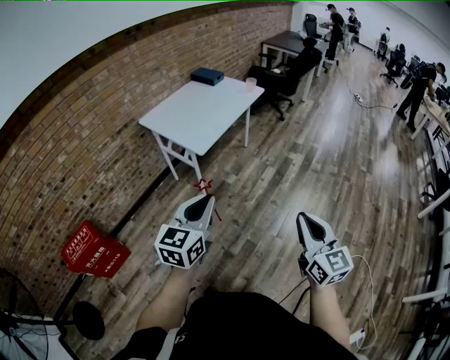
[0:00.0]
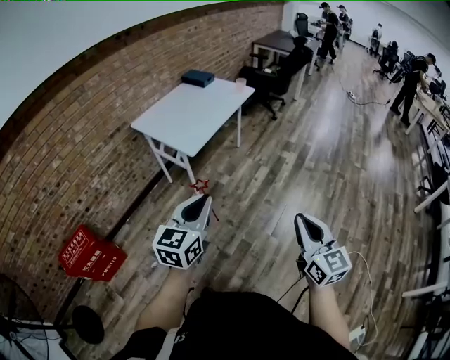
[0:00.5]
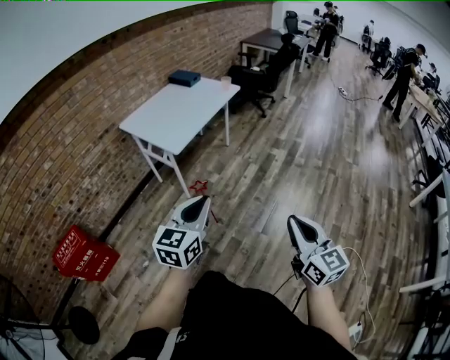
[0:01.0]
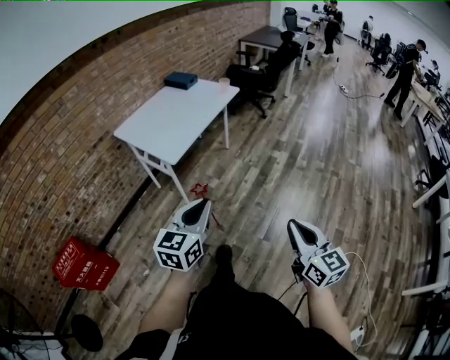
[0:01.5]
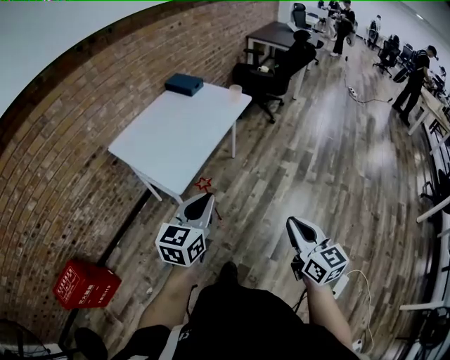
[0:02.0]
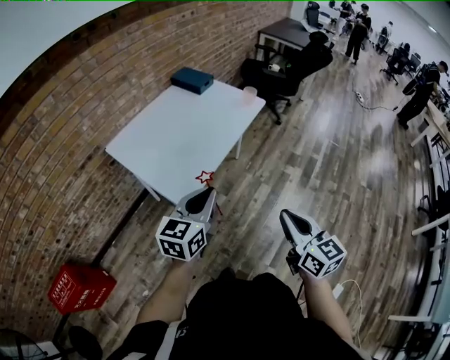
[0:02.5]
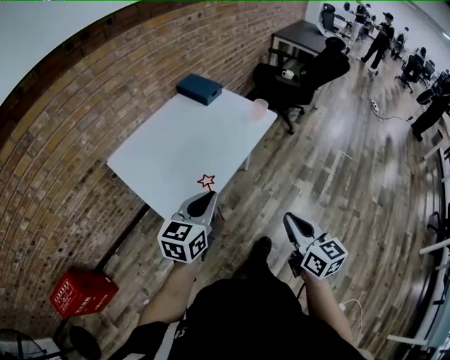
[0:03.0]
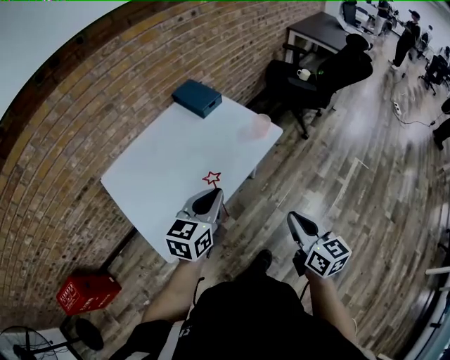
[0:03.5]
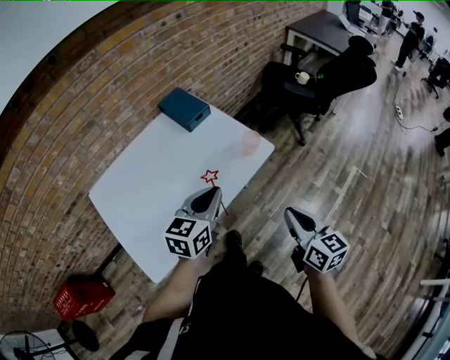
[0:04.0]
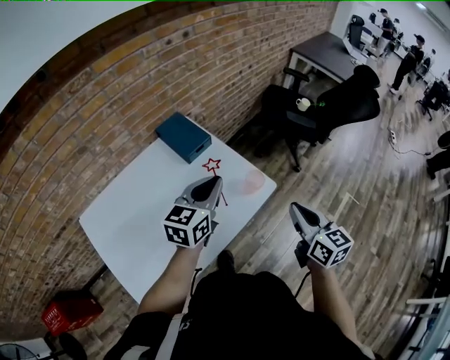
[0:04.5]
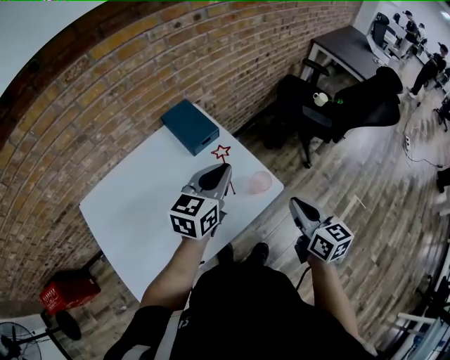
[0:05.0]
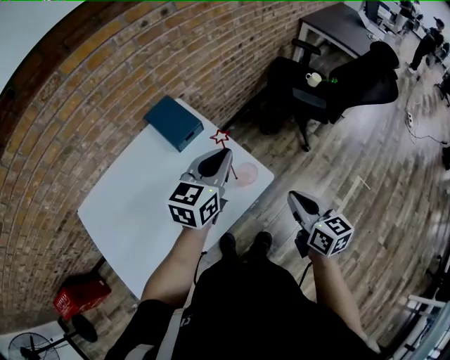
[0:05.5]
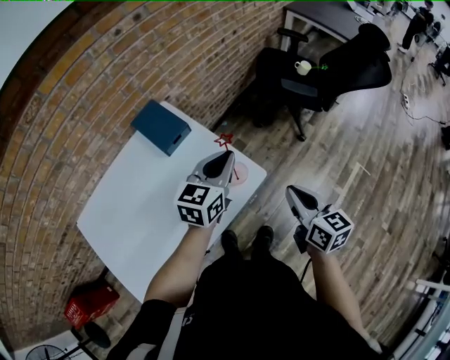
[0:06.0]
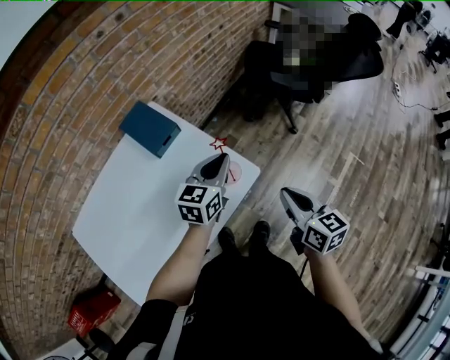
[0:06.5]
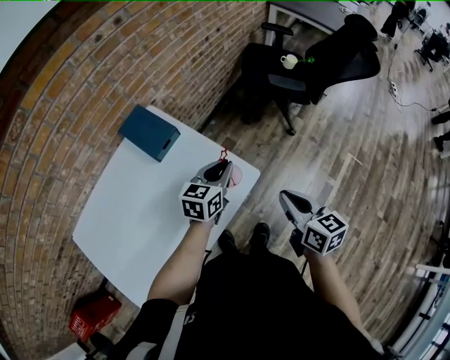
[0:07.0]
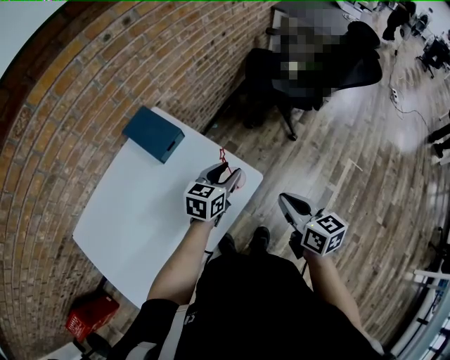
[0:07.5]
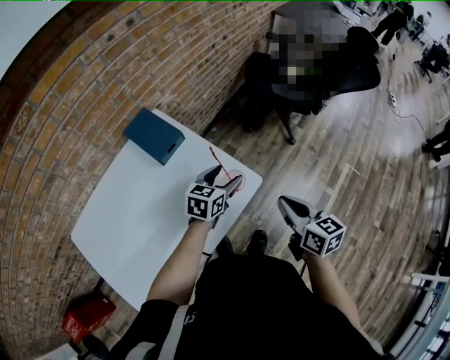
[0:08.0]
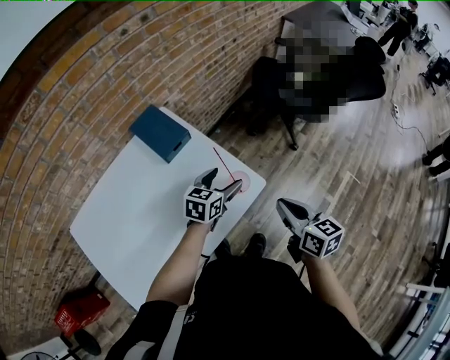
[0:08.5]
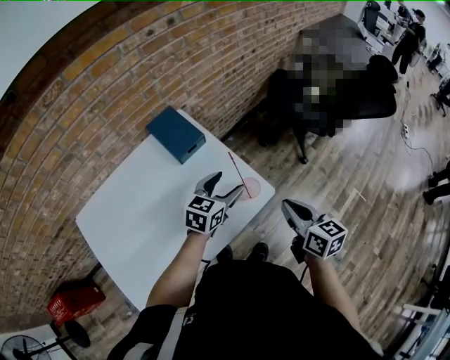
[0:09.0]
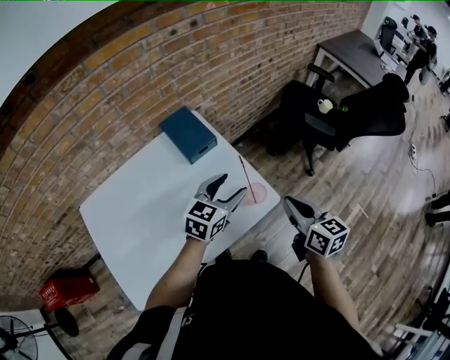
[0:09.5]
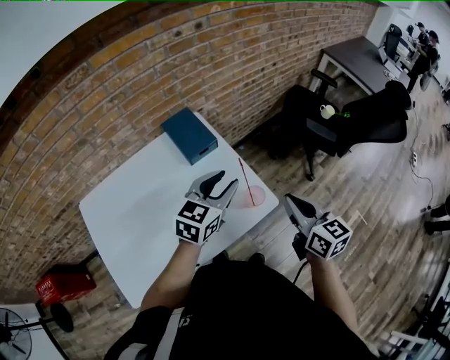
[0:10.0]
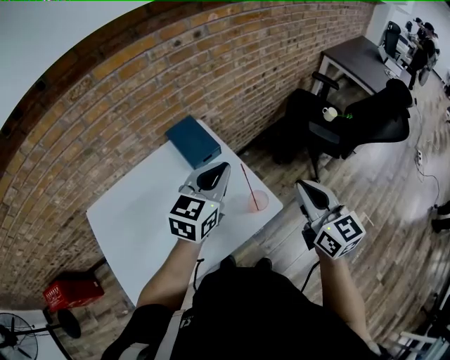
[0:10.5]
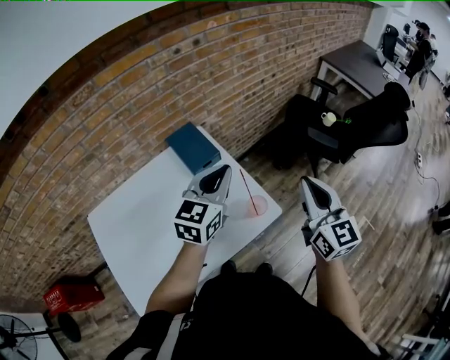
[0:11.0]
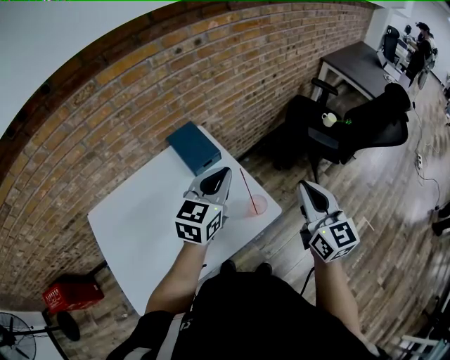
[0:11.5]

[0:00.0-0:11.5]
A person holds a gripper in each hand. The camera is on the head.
0:00.0 to 0:02.0: The grippers both shift forward by about 25 cm.
0:02.0 to 0:04.0: The pair of grippers is taken forward, approximately 60 cm.
0:04.0 to 0:06.0: The left gripper is displaced forward and to the right by approximately 30 cm; the right gripper goes roughly 25 cm forward.
0:06.0 to 0:07.5: The left gripper goes approximately 10 cm downward, and opens up.
0:07.5 to 0:09.5: The right gripper moves to the left, approximately 5 cm. The left gripper travels to the left and upward by some 10 cm.
0:09.5 to 0:11.5: The grippers both shift upward by roughly 10 cm. The right gripper changes its angle by roughly 30 degrees, while the left gripper closes its fingers.

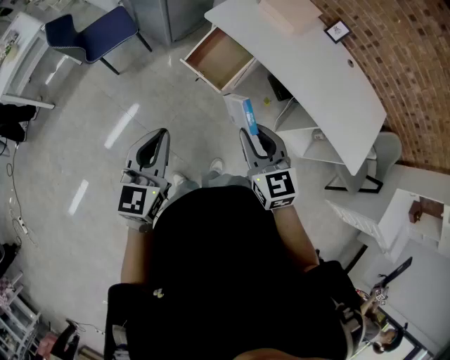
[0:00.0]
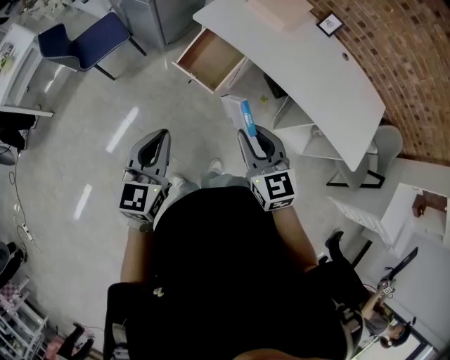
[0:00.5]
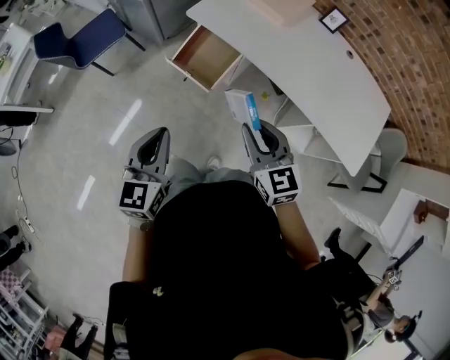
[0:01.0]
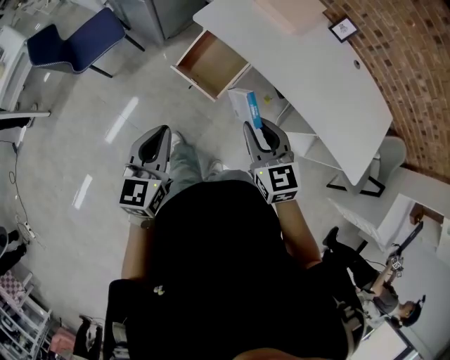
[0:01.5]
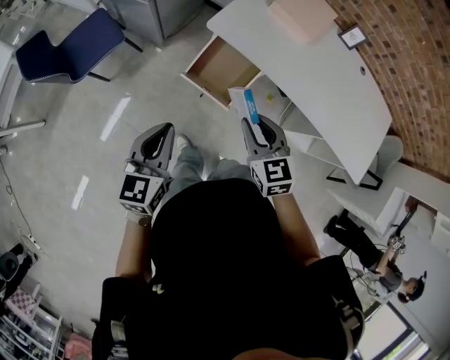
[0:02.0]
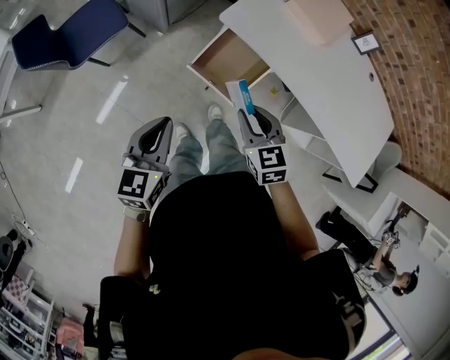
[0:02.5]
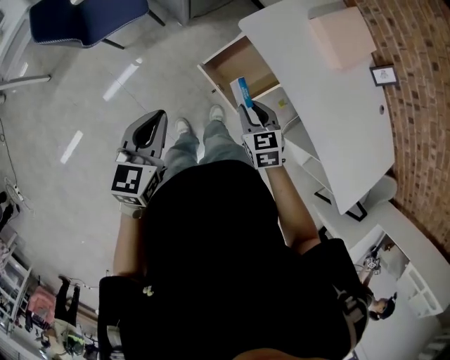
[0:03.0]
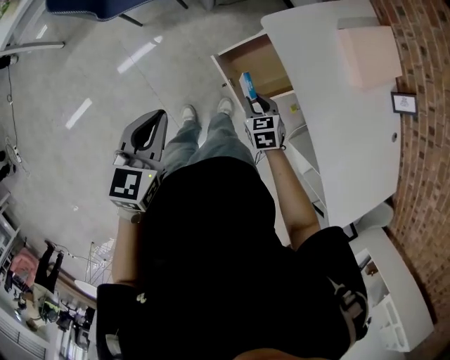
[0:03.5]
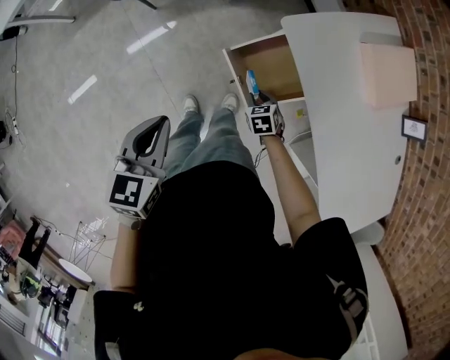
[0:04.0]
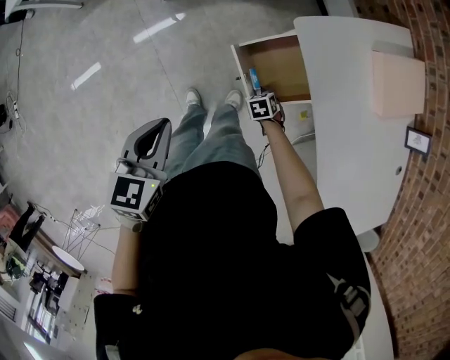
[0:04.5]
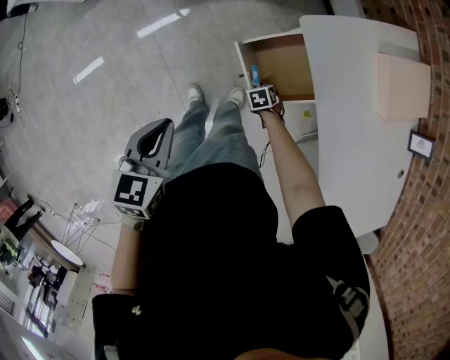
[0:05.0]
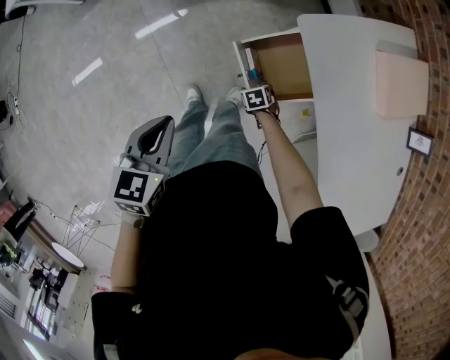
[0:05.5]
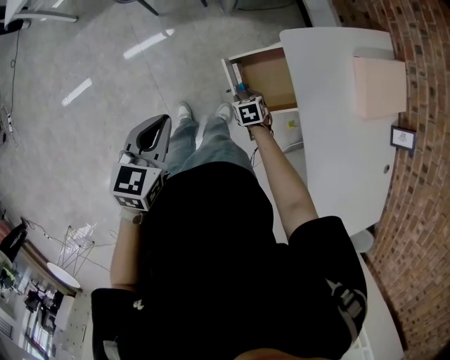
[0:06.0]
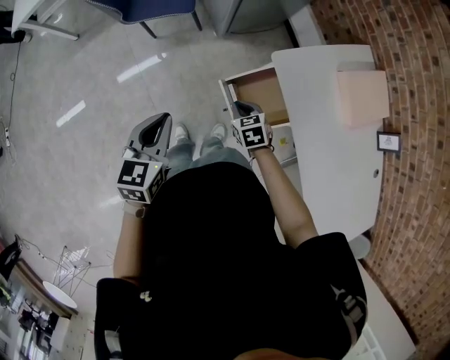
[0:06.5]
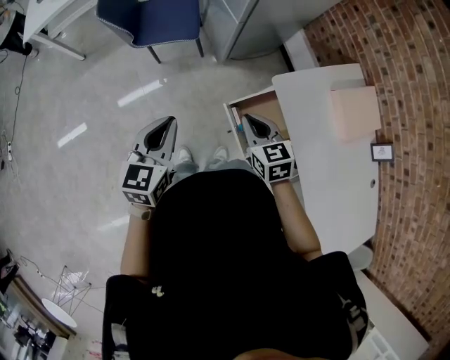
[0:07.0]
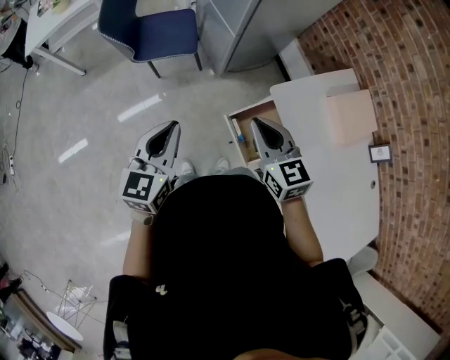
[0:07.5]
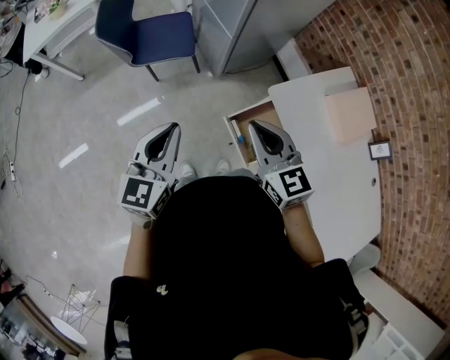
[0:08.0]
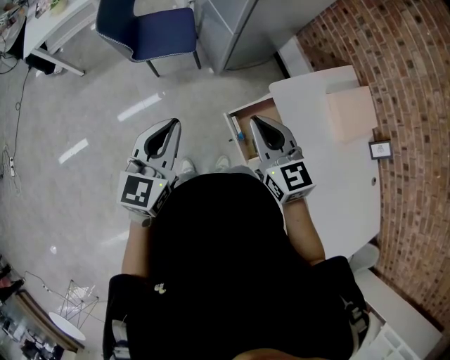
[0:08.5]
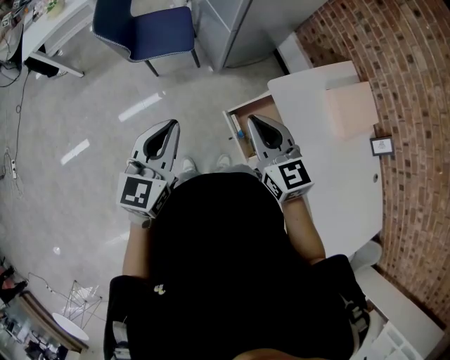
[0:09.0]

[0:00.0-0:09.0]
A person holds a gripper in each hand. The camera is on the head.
0:00.0 to 0:02.0: Both grippers travel together forward, some 20 cm.
0:02.0 to 0:04.5: The left gripper travels downward by approximately 5 cm, and changes its angle by about 40 degrees. Meanwhile the right gripper goes approximately 40 cm downward, and tips its fingers downward by roughly 40 degrees.
0:04.5 to 0:07.0: The right gripper travels upward by about 35 cm, tips its fingers upward by about 40 degrees, and opens, then closes once more, while the left gripper moves some 15 cm.
0:07.0 to 0:09.0: The right gripper heads upward, covering some 15 cm, while the left gripper heads upward, covering approximately 5 cm.

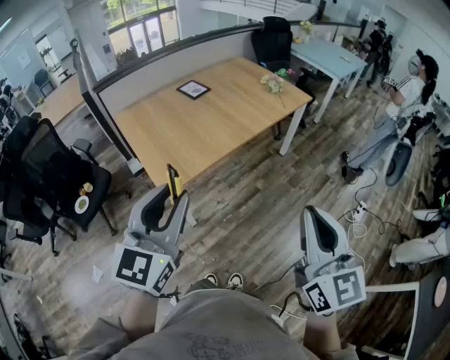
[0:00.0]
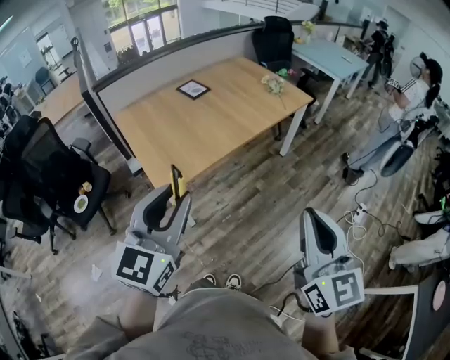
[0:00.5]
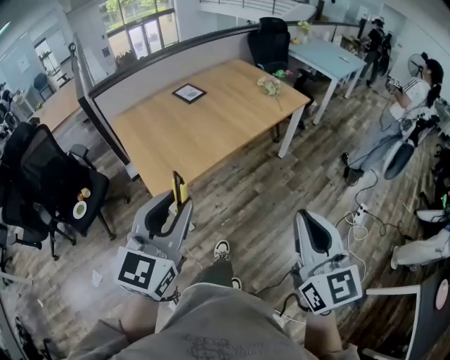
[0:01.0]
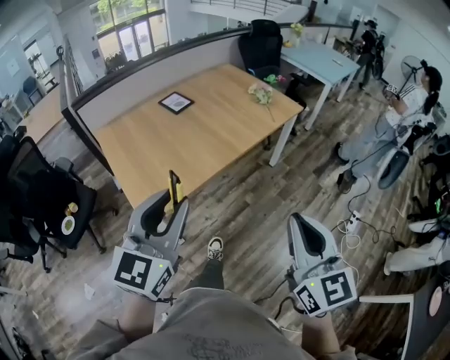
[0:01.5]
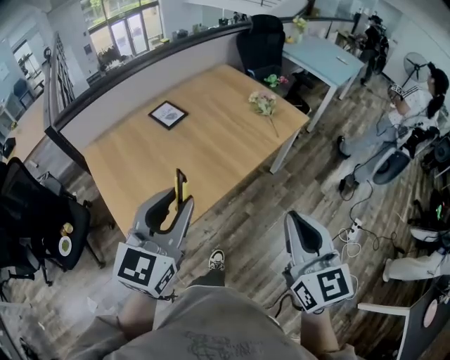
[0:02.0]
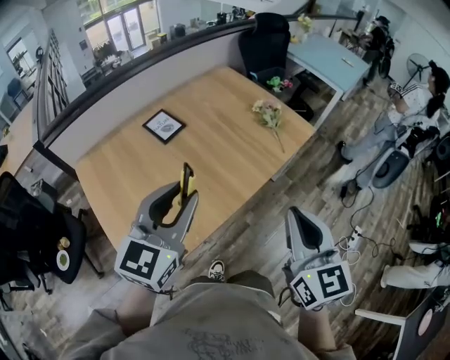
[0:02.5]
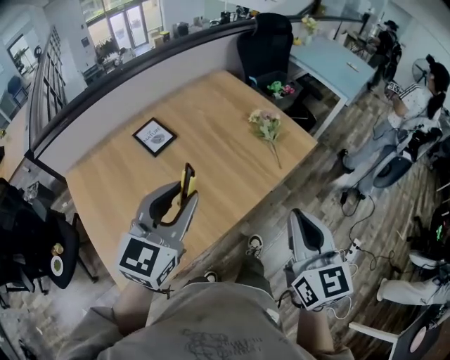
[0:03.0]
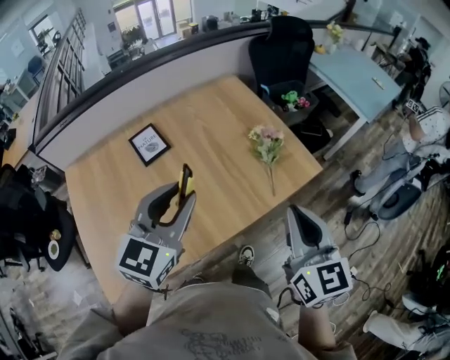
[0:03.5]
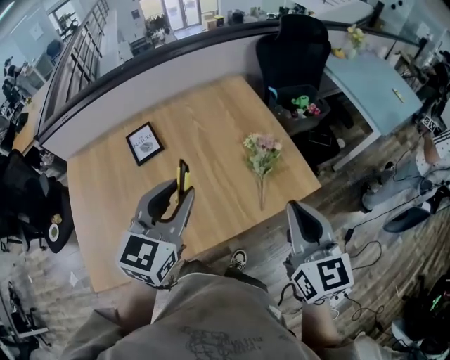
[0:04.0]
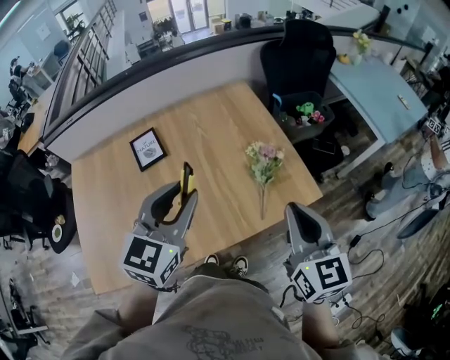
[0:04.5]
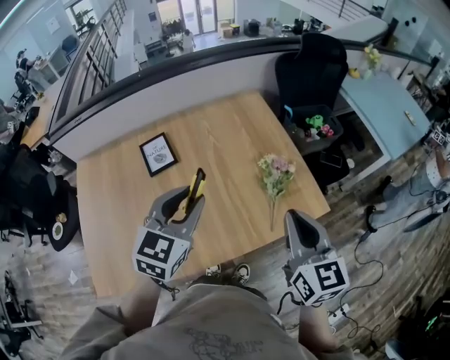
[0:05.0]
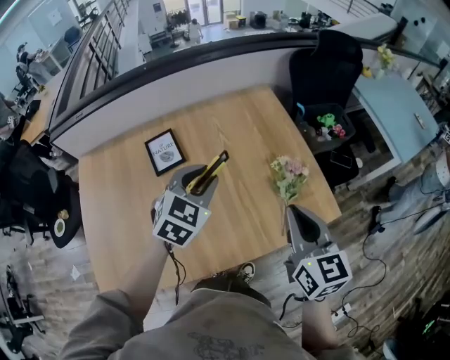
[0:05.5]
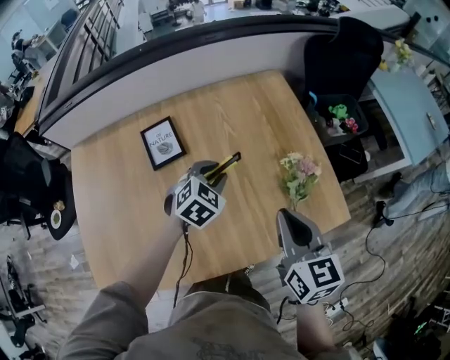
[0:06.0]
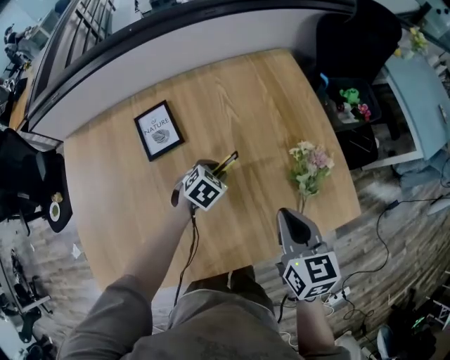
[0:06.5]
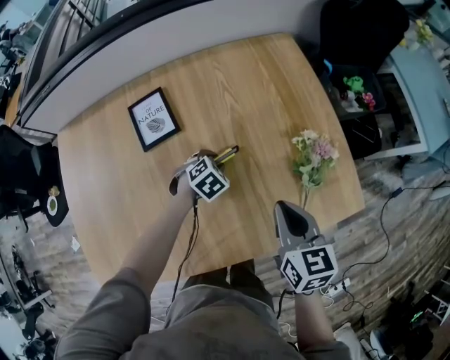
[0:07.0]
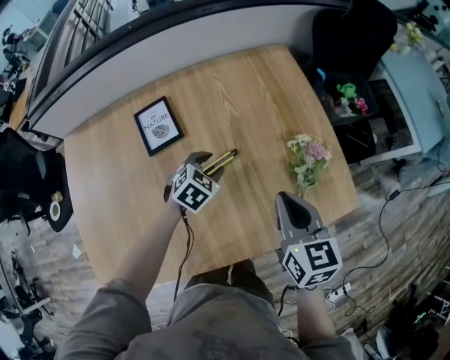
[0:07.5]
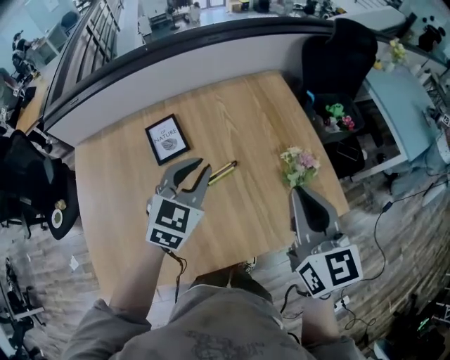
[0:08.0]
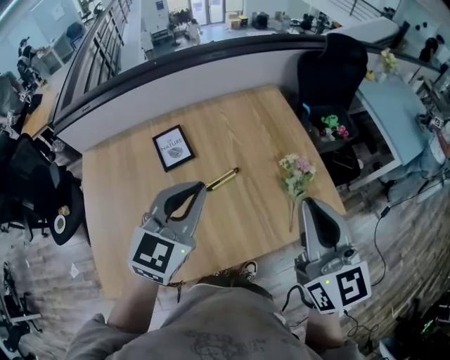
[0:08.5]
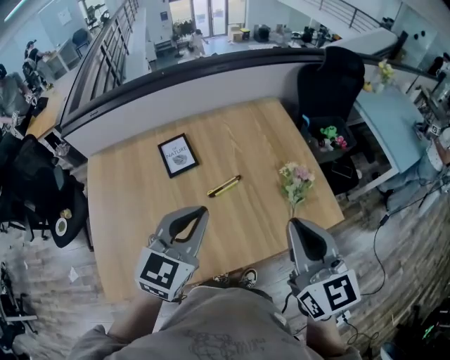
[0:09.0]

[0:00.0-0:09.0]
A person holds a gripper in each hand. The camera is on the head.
0:00.0 to 0:02.0: Both grippers travel together forward, about 30 cm.
0:02.0 to 0:04.5: The pair of grippers is taken forward and to the right, approximately 50 cm. The left gripper rotates approximately 20 degrees.
0:04.5 to 0:07.0: The left gripper goes about 50 cm downward and forward, and points its fingers about 50 degrees further downward. Meanwhile the right gripper shifts approximately 30 cm downward, to the left and forward, and changes its angle by some 30 degrees.
0:07.0 to 0:09.0: The left gripper moves upward and backward, approximately 50 cm, angles its fingers upward, by about 50 degrees, and closes up; the right gripper heads upward and backward, covering roughly 30 cm, and rotates about 30 degrees.
